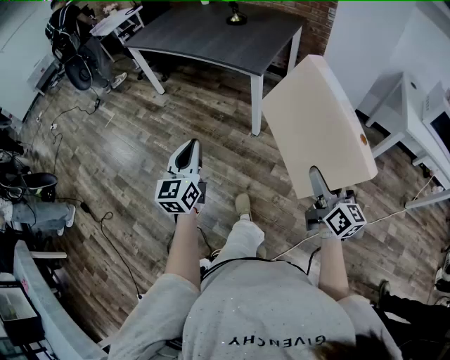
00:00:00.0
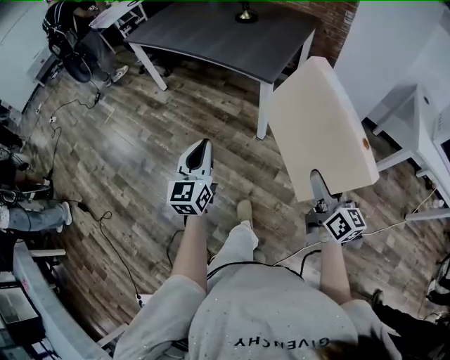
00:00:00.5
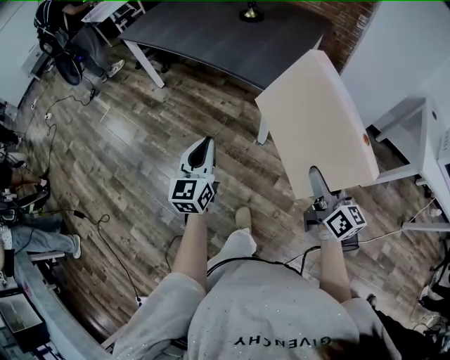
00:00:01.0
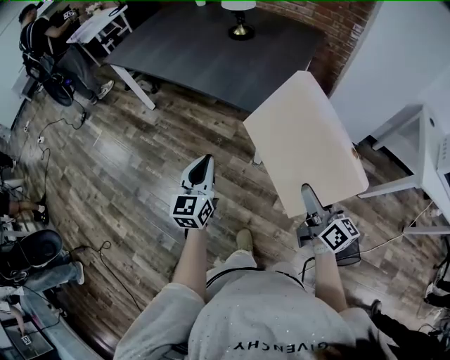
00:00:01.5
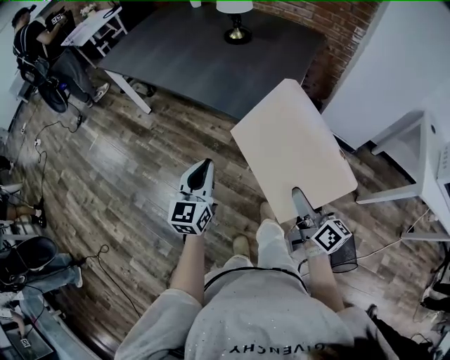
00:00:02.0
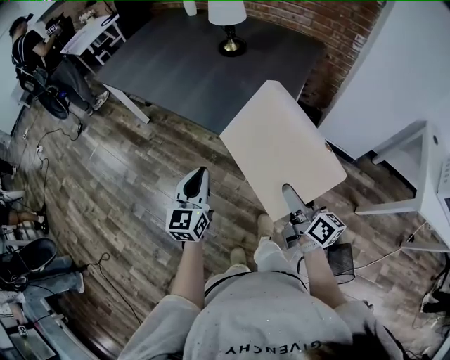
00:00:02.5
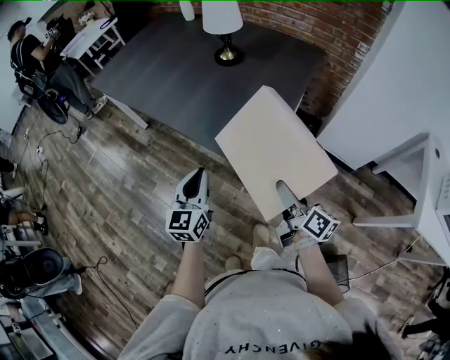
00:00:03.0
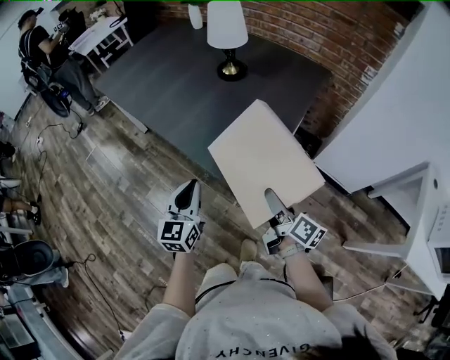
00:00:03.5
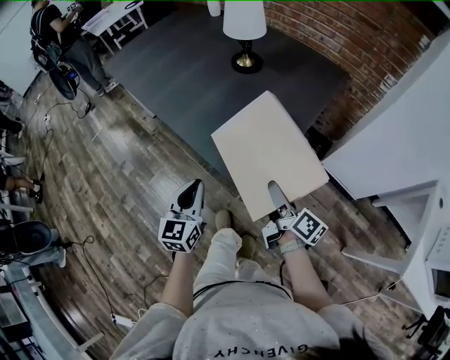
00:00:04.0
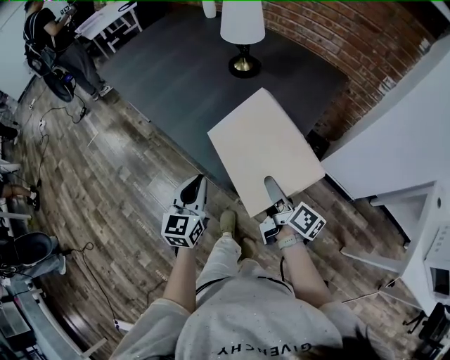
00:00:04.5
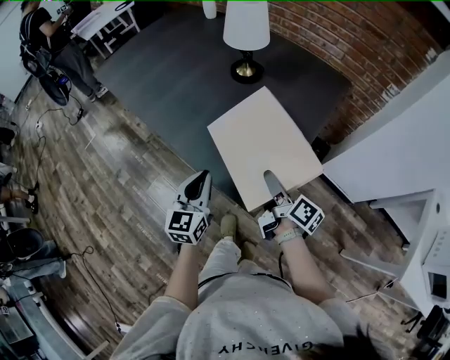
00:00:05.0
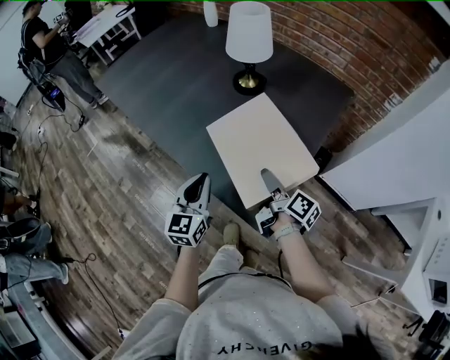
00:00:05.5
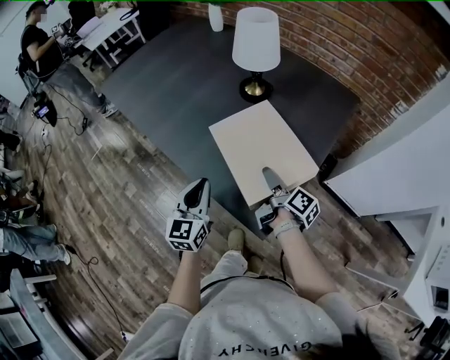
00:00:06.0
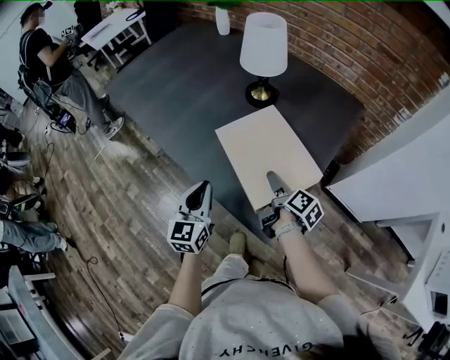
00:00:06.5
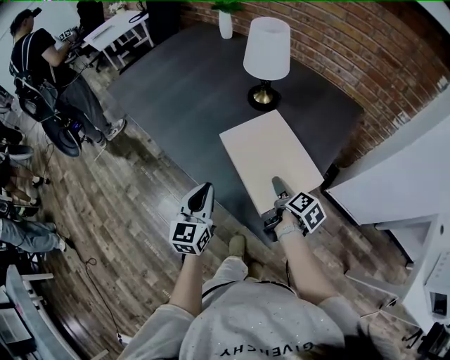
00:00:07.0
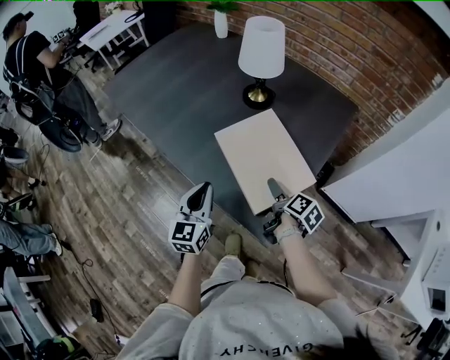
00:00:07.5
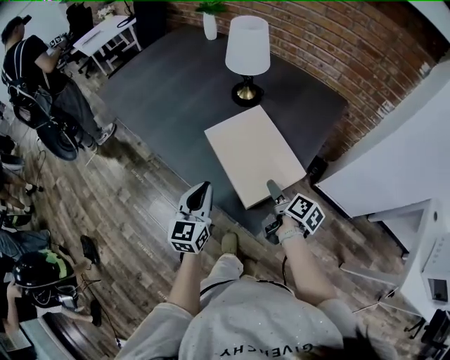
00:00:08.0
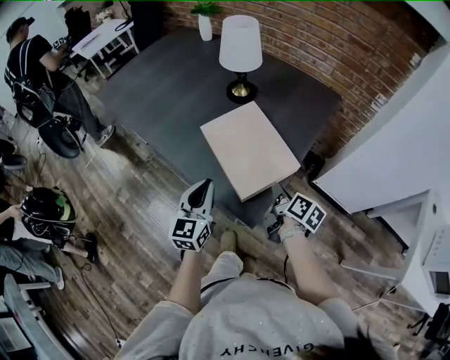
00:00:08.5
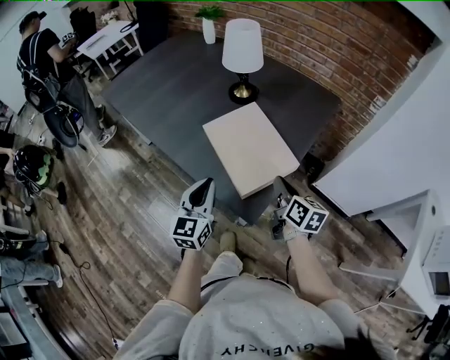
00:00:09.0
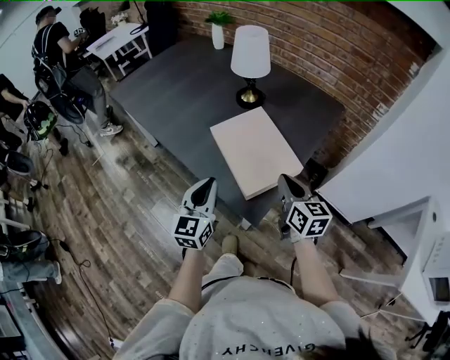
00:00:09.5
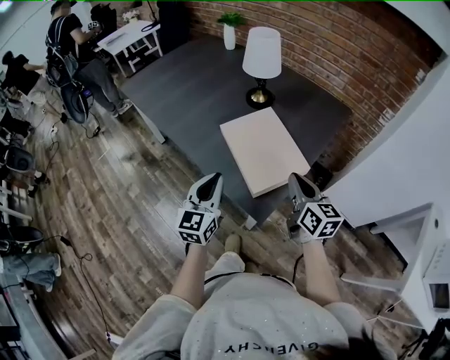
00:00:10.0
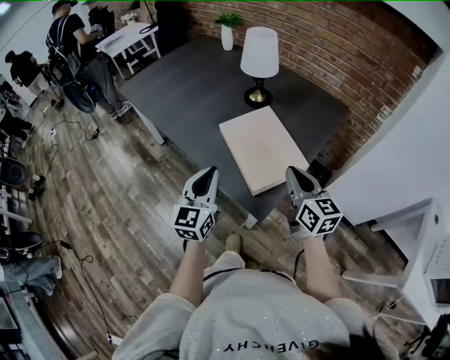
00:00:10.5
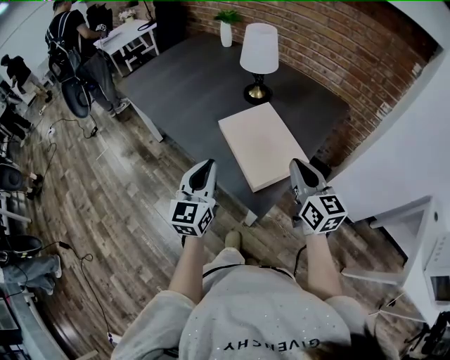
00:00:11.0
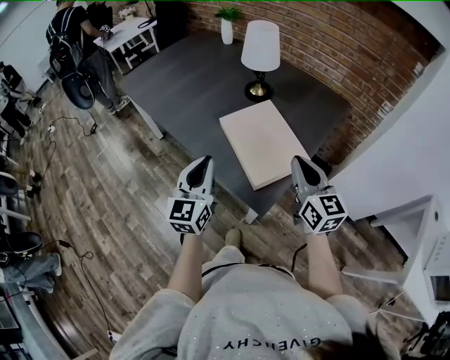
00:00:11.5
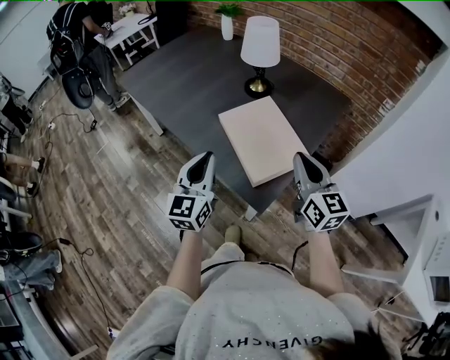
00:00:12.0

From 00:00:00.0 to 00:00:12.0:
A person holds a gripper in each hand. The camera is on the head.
From 00:00:00.0 to 00:00:02.0: The two grippers go about 35 cm forward.
From 00:00:02.0 to 00:00:04.0: The right gripper travels forward by approximately 25 cm, and changes its angle by some 20 degrees; the left gripper goes some 15 cm forward and to the right.
From 00:00:04.0 to 00:00:06.0: Both grippers travel together forward, roughly 20 cm.
From 00:00:06.0 to 00:00:08.0: The right gripper travels backward and to the right by about 10 cm.
From 00:00:08.0 to 00:00:10.0: The left gripper heads backward and upward, covering approximately 10 cm. The right gripper moves upward, roughly 15 cm, twists roughly 50 degrees counterclockwise, seen from behind, and closes.
From 00:00:10.0 to 00:00:12.0: The right gripper moves upward, some 5 cm.

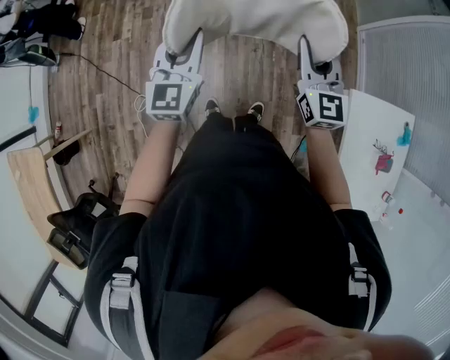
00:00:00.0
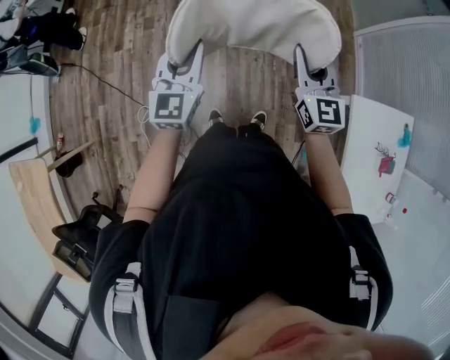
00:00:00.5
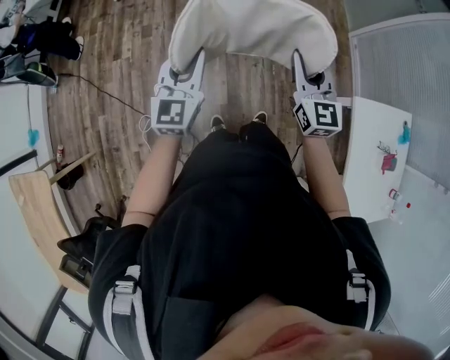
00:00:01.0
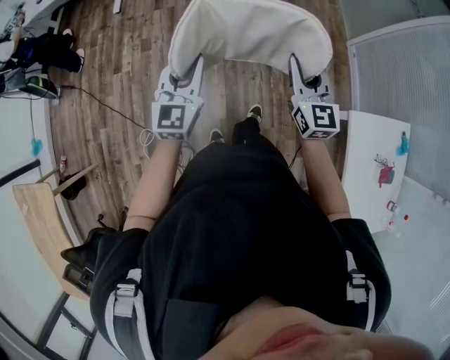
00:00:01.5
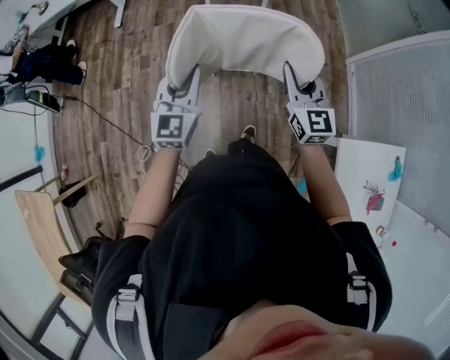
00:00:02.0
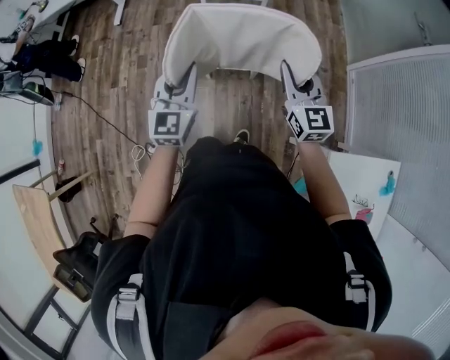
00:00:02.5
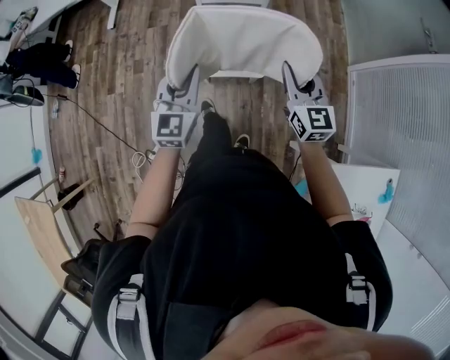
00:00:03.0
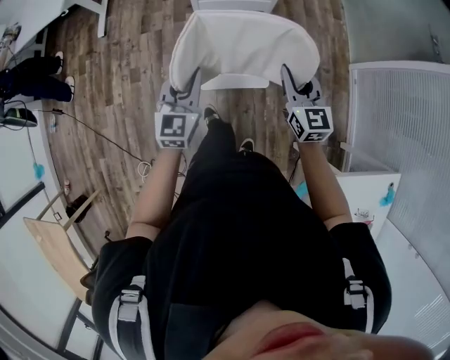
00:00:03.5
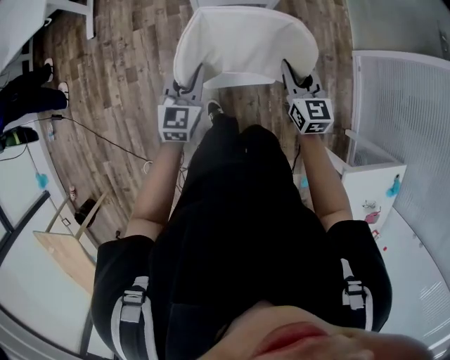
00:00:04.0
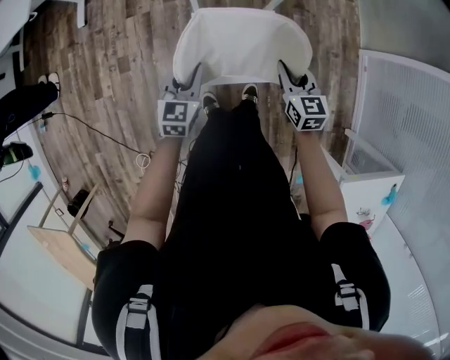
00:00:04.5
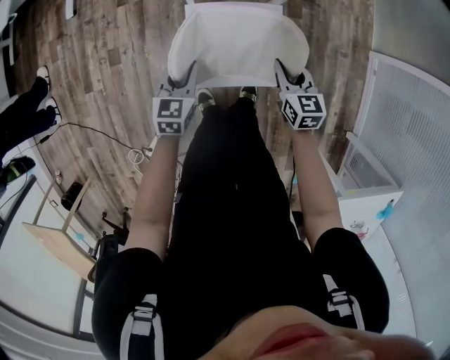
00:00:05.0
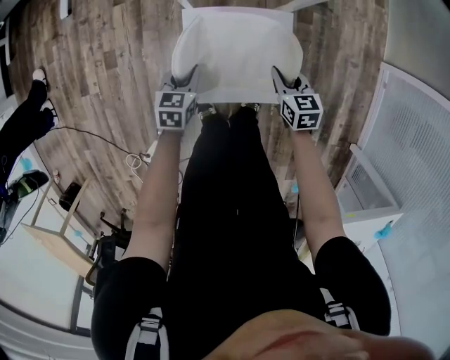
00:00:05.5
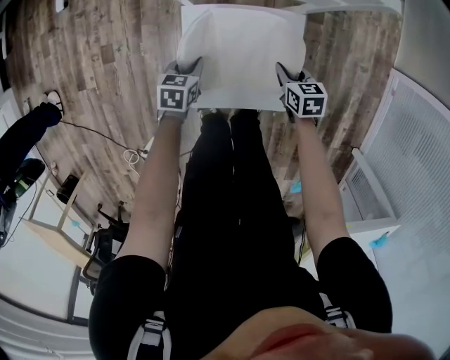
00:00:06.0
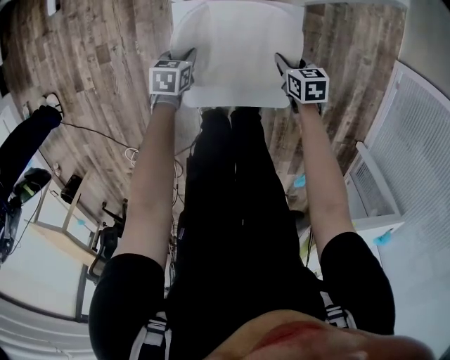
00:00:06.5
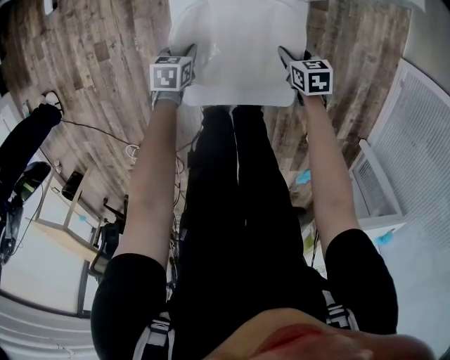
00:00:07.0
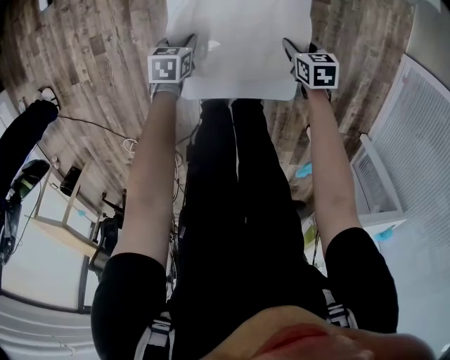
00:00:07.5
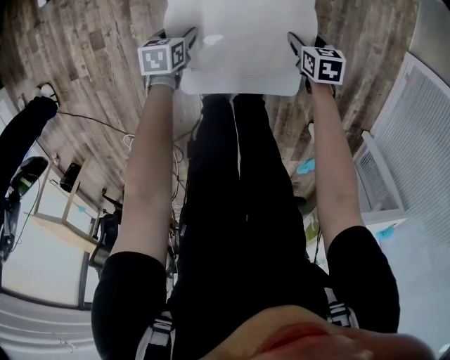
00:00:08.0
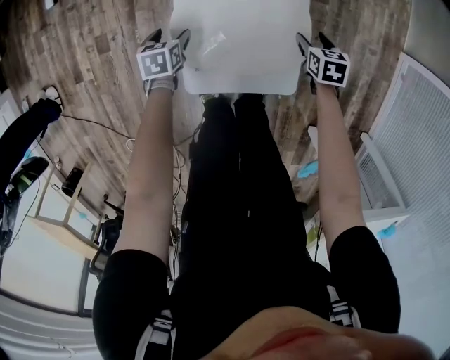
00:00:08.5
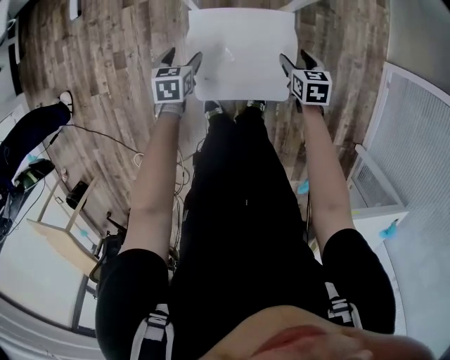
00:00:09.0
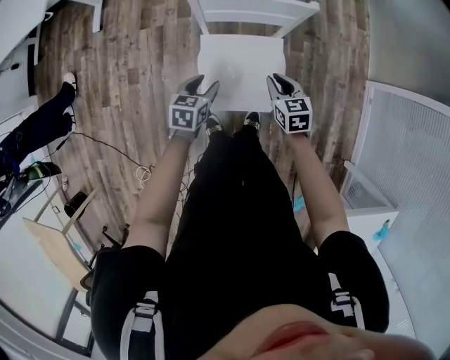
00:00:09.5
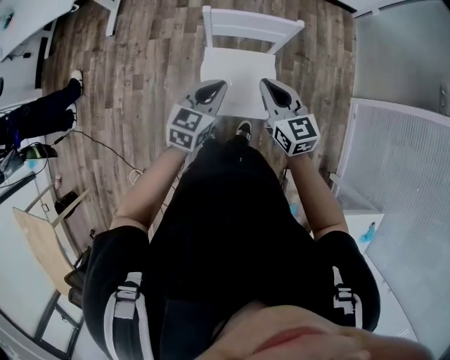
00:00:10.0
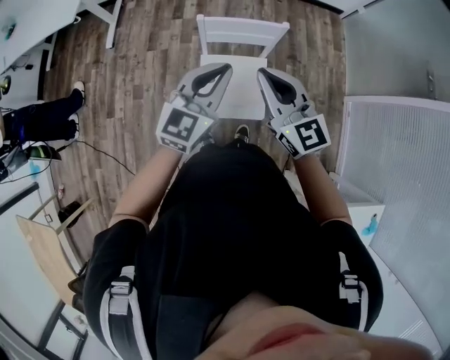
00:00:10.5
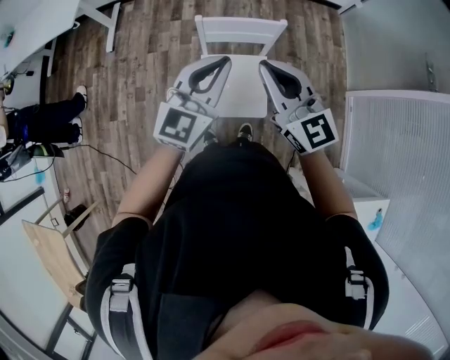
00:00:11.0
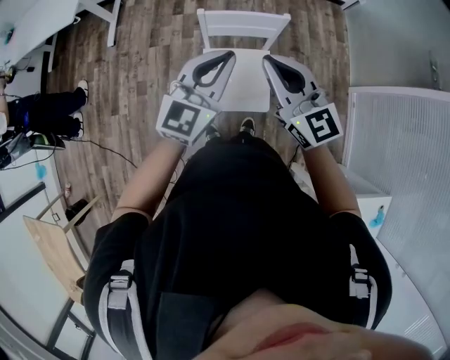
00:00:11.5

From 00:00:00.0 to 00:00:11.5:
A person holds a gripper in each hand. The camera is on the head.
From 00:00:00.0 to 00:00:02.0: Both grippers move forward, some 15 cm.
From 00:00:02.0 to 00:00:04.0: The grippers both shift forward and downward by approximately 40 cm.
From 00:00:04.0 to 00:00:06.0: Both grippers move downward, about 50 cm. The right gripper points its fingers some 30 degrees further downward. Meanwhile the left gripper tilts its fingers some 40 degrees downward.
From 00:00:06.0 to 00:00:07.5: Both grippers move downward, about 10 cm.
From 00:00:07.5 to 00:00:09.5: Both grippers travel together upward, roughly 35 cm. The left gripper opens, while the right gripper swivels approximately 20 degrees, and opens, then closes again.
From 00:00:09.5 to 00:00:11.5: Both grippers move upward, some 40 cm. The right gripper tilts its fingers about 40 degrees upward; the left gripper angles its fingers upward, by about 40 degrees, and closes its fingers.

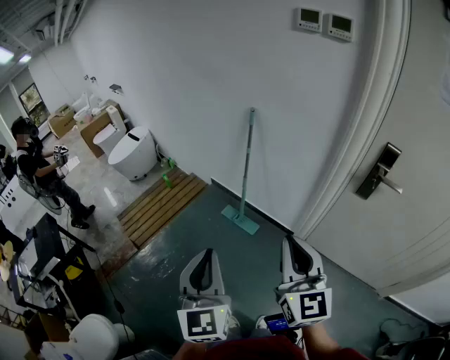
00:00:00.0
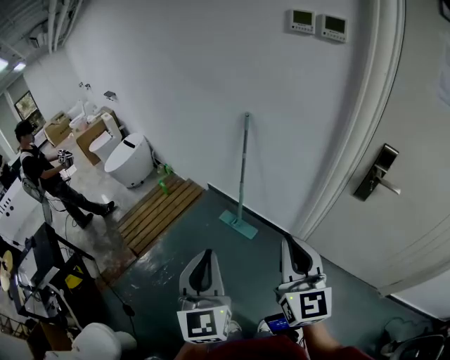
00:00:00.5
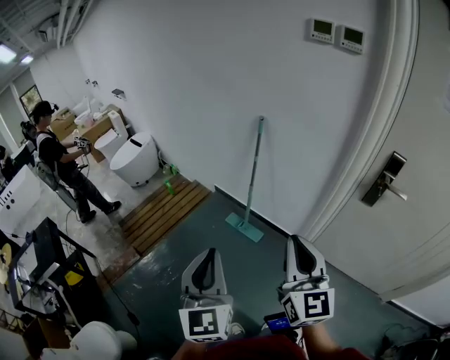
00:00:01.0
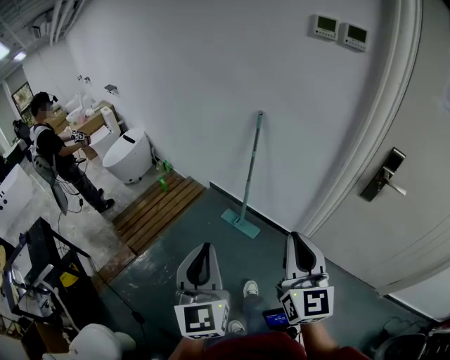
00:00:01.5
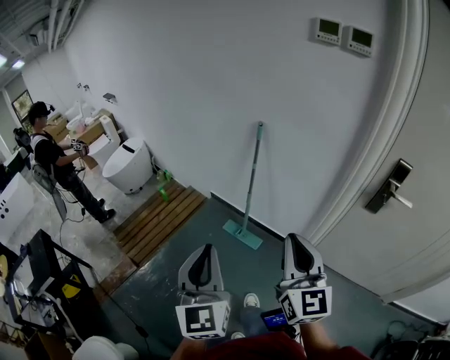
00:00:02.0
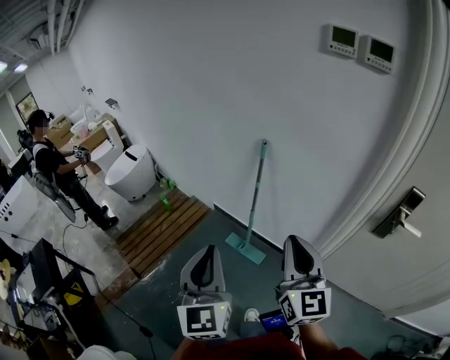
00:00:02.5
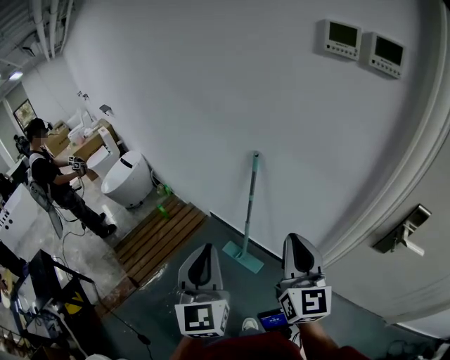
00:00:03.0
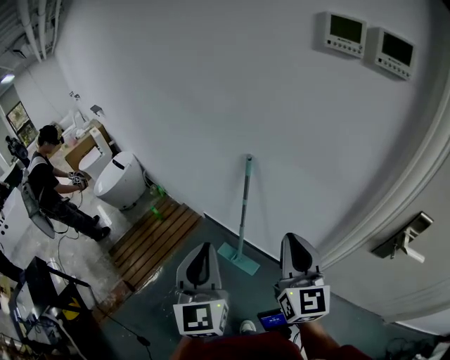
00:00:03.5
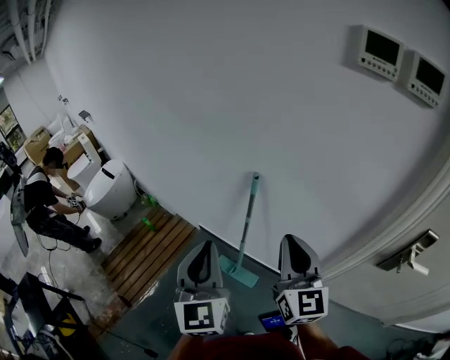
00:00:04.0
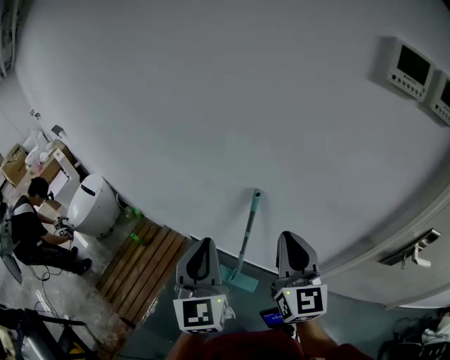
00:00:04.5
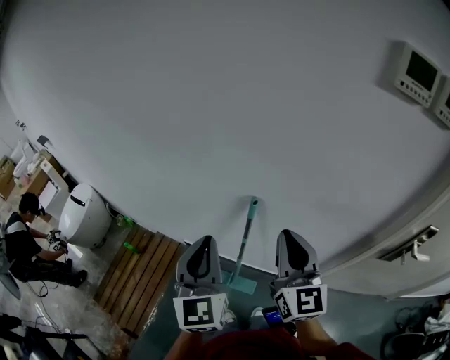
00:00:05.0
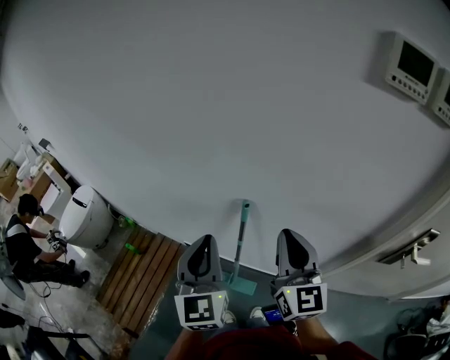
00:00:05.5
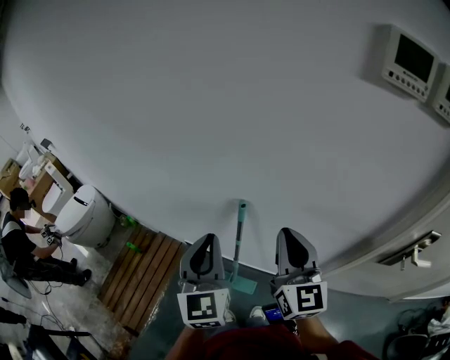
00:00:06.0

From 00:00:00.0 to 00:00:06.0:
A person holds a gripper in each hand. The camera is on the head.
From 00:00:00.0 to 00:00:02.0: The two grippers go roughly 10 cm forward and to the left.
From 00:00:02.0 to 00:00:04.0: The two grippers go approximately 35 cm forward.
From 00:00:04.0 to 00:00:06.0: Both grippers travel together forward, approximately 15 cm.
